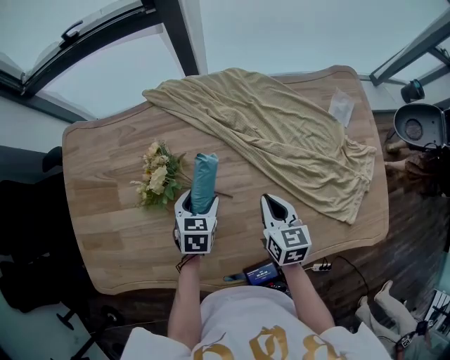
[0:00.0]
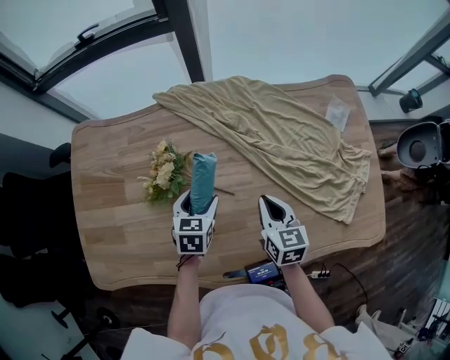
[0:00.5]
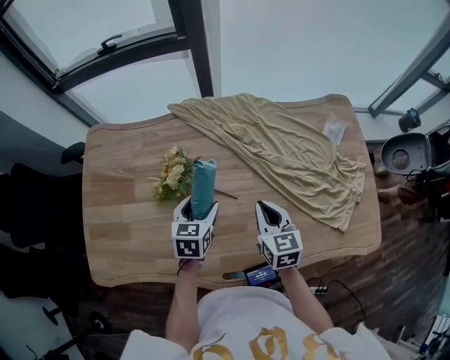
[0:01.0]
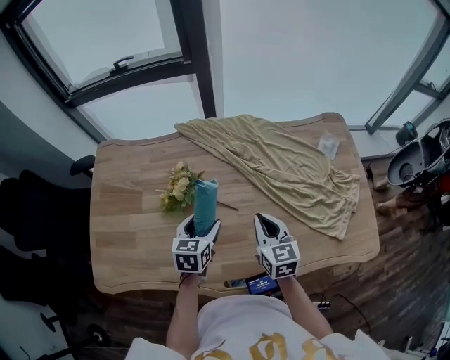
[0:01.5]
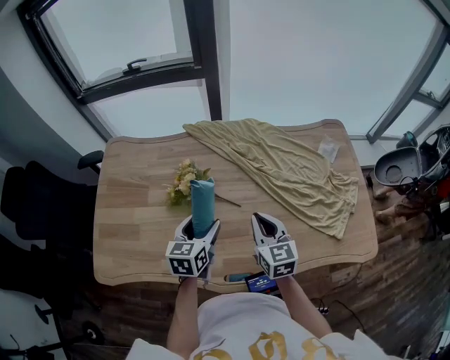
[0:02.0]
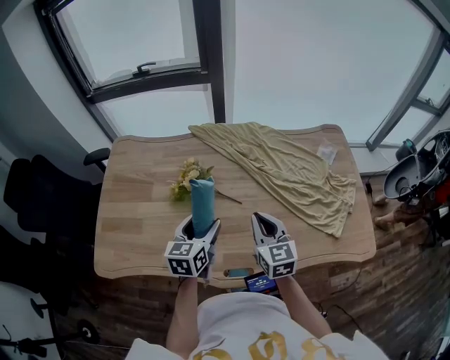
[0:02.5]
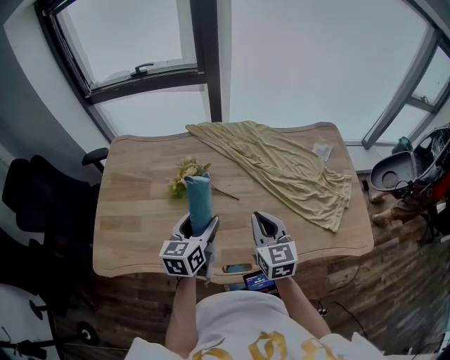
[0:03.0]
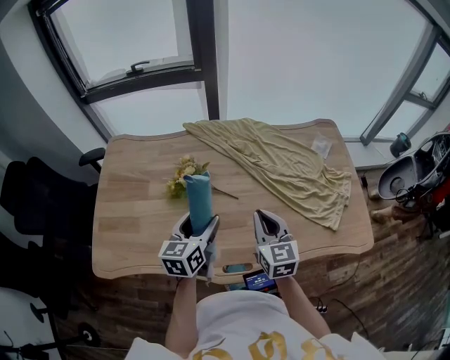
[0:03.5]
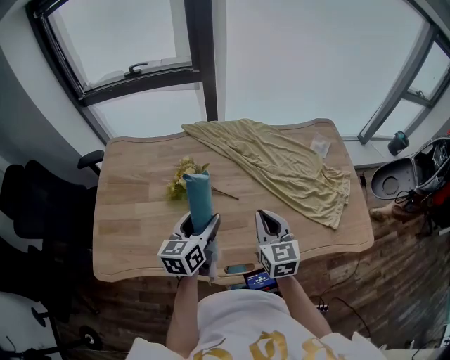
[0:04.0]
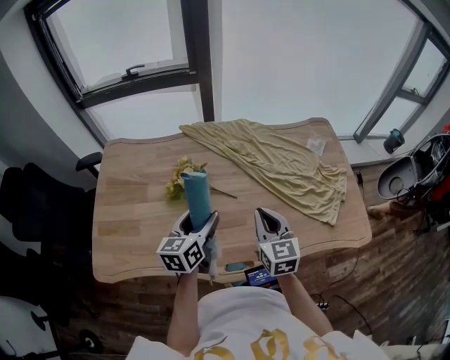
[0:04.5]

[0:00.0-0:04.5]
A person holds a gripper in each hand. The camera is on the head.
0:00.0 to 0:02.0: The right gripper moves upward, backward and to the left, roughly 15 cm, and changes its angle by some 20 degrees, while the left gripper heads upward and backward, covering roughly 20 cm, and turns by about 30 degrees.
0:02.0 to 0:04.5: The right gripper goes roughly 5 cm backward. Meanwhile the left gripper shifts some 5 cm upward.

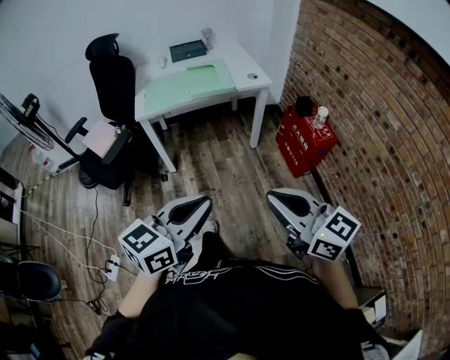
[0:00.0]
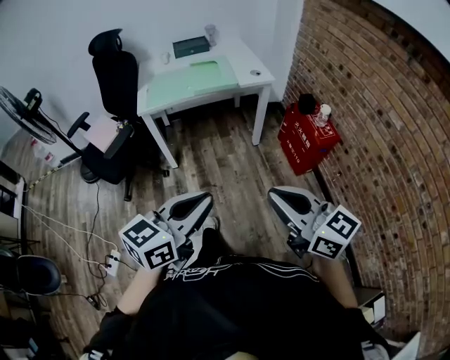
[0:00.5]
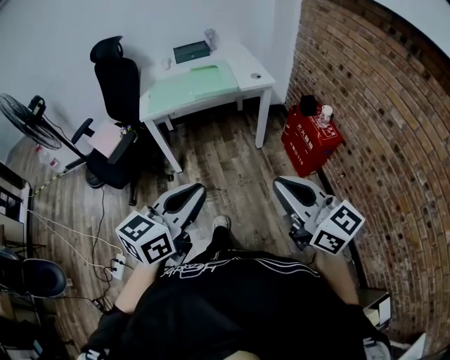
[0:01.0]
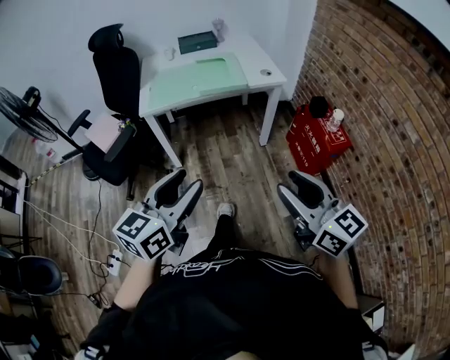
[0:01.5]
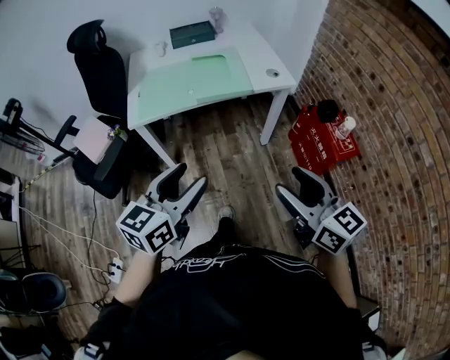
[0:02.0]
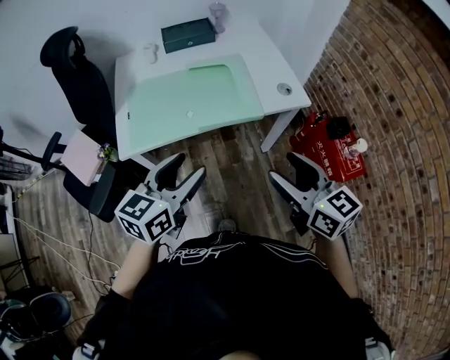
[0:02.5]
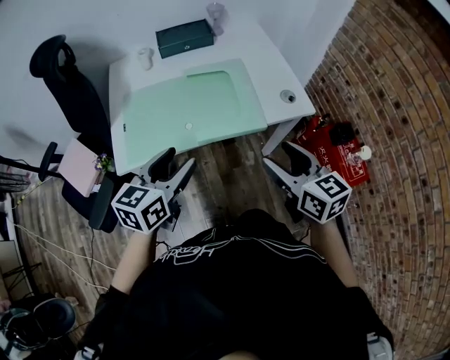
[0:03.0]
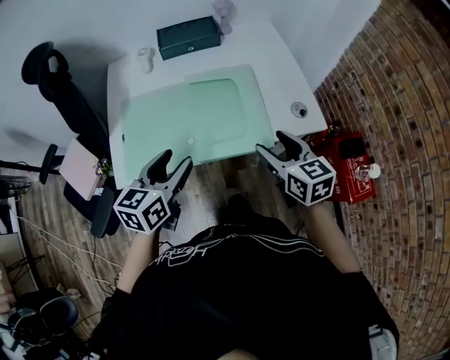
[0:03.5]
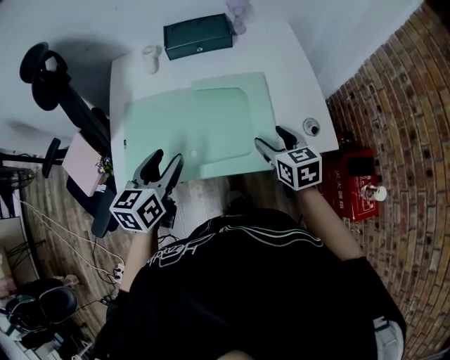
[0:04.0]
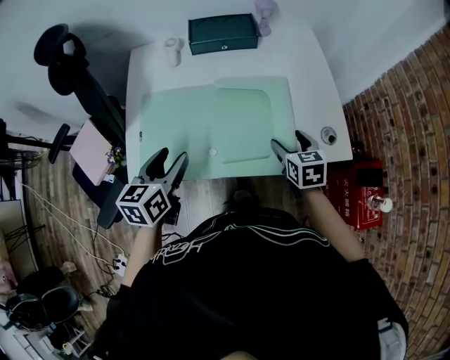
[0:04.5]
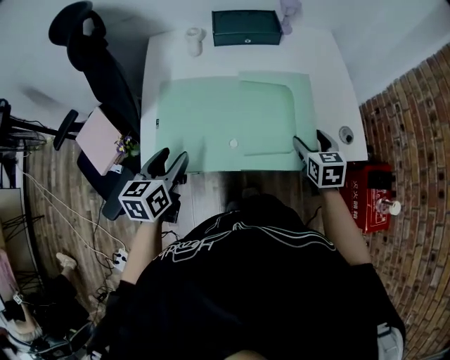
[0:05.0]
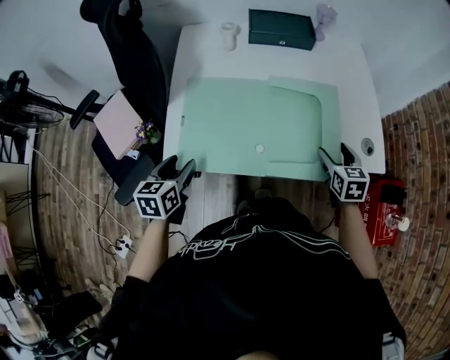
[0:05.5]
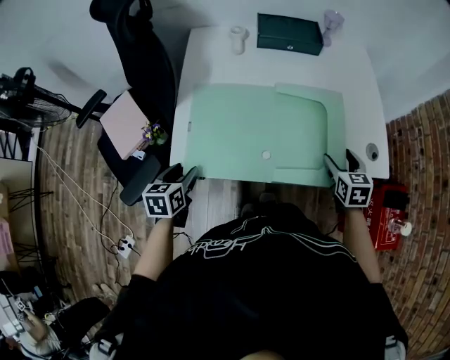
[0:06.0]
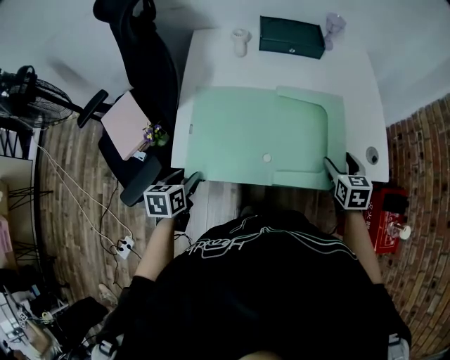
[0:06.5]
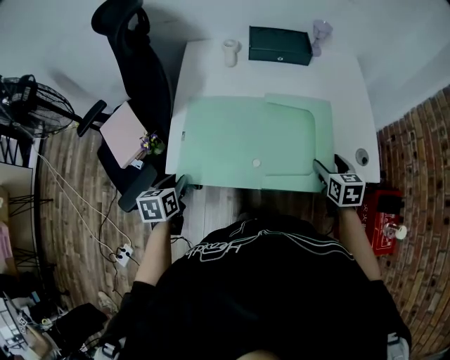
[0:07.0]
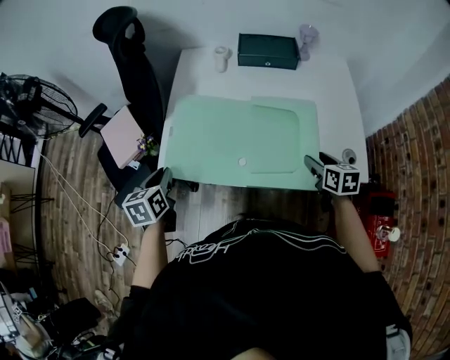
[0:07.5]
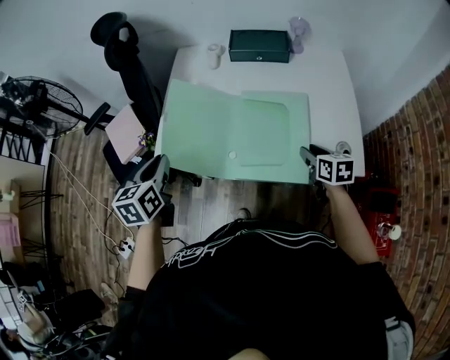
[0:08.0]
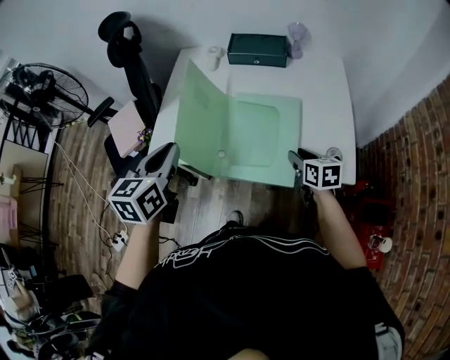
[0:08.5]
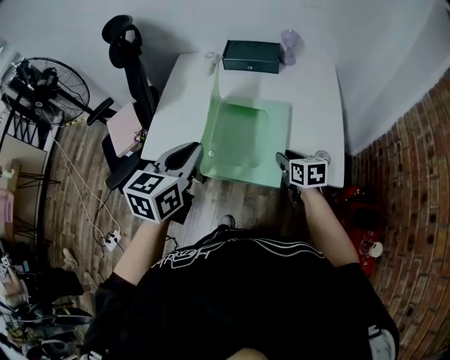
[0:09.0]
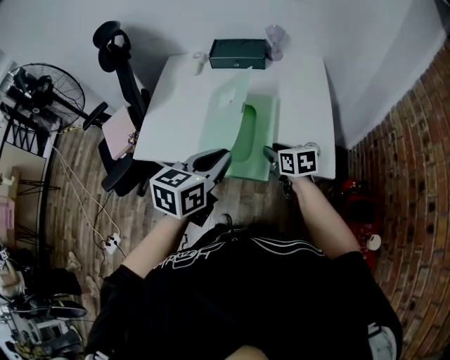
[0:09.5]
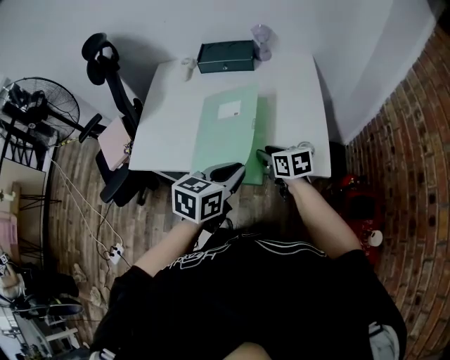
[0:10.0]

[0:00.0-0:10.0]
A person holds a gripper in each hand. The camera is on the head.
0:00.0 to 0:02.0: Both grippers move forward, roughly 25 cm. The left gripper opens. The right gripper opens its fingers.
0:02.0 to 0:04.0: Both grippers are carried forward, some 50 cm. The right gripper rotates roughly 30 degrees, while the left gripper turns by roughly 20 degrees.
0:04.0 to 0:06.0: The left gripper heads to the left, downward and backward, covering about 25 cm, and rotates some 20 degrees.
0:06.0 to 0:08.0: The right gripper turns by approximately 20 degrees, and closes, while the left gripper travels upward and to the right by approximately 20 cm, and closes its fingers.
0:08.0 to 0:10.0: The left gripper heads to the right, covering approximately 35 cm, and turns by approximately 30 degrees.

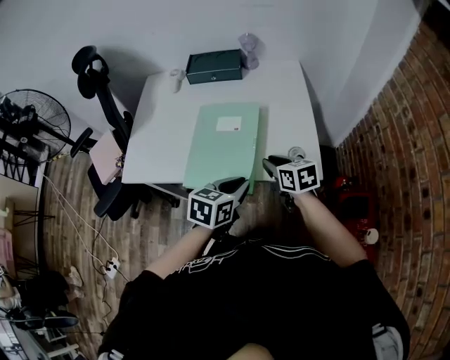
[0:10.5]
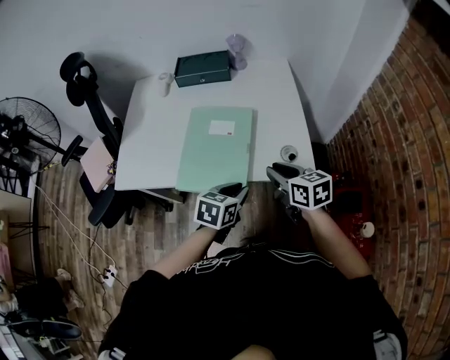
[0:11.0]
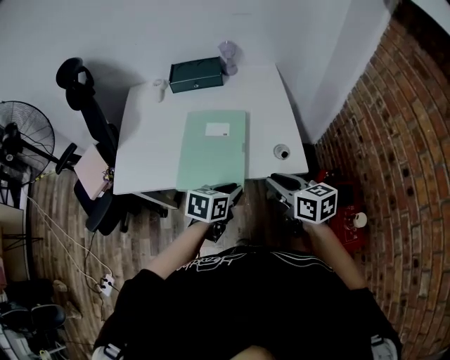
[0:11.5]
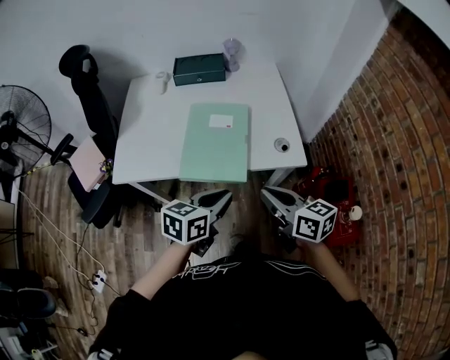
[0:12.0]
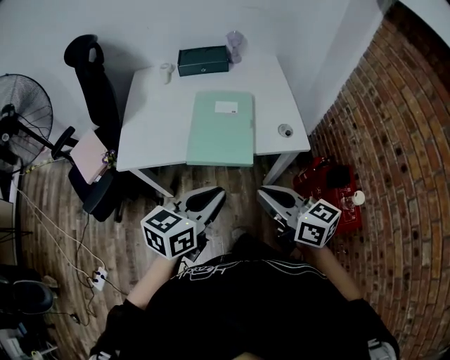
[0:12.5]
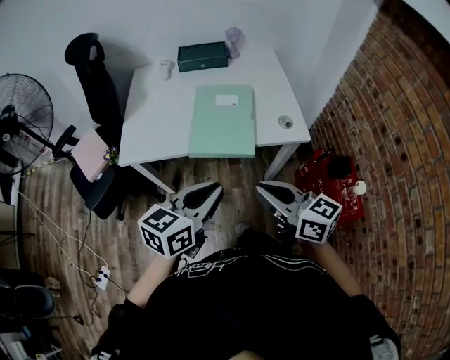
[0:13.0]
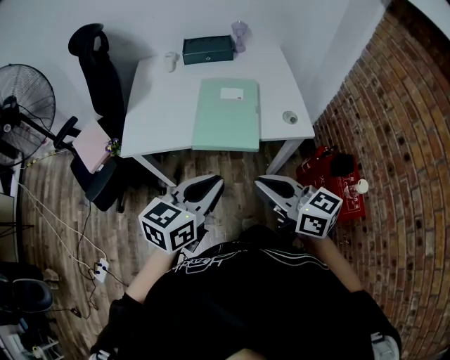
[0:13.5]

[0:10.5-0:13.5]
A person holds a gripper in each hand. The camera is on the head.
0:10.5 to 0:12.0: The left gripper heads backward and upward, covering about 10 cm; the right gripper heads backward and upward, covering some 20 cm.
0:12.0 to 0:13.5: The left gripper moves backward, to the left and upward, approximately 15 cm. Meanwhile the right gripper travels backward and to the left by some 10 cm.

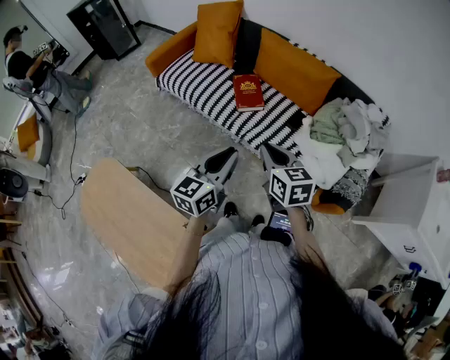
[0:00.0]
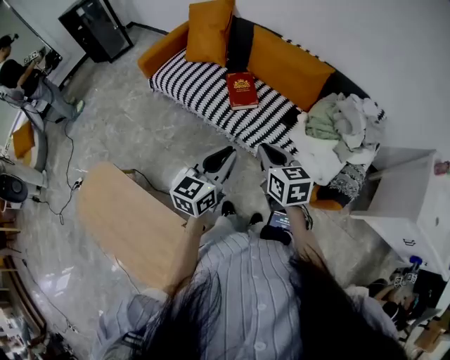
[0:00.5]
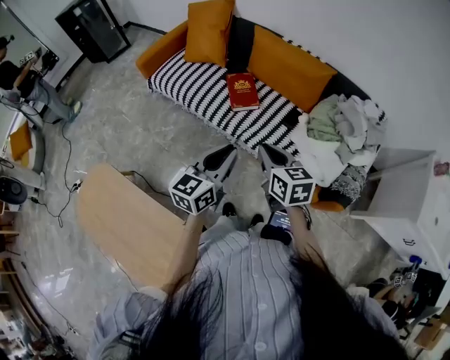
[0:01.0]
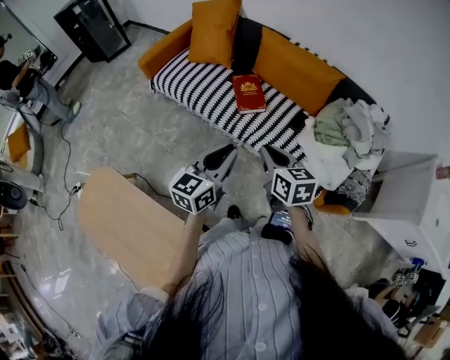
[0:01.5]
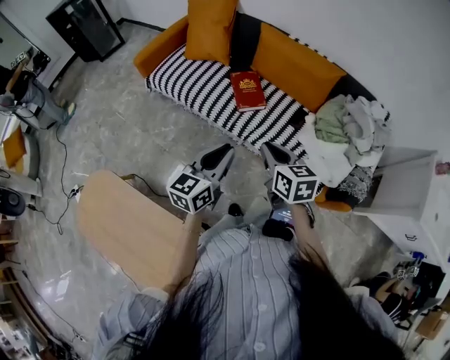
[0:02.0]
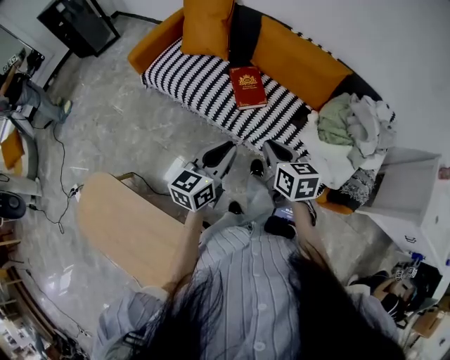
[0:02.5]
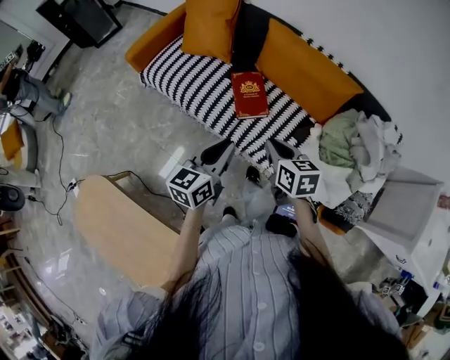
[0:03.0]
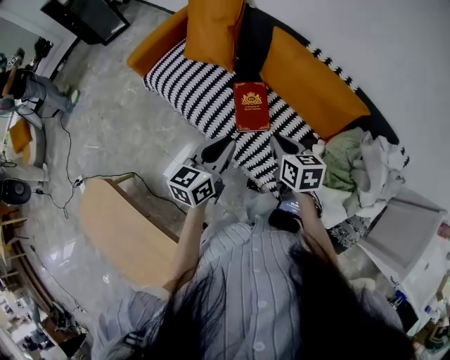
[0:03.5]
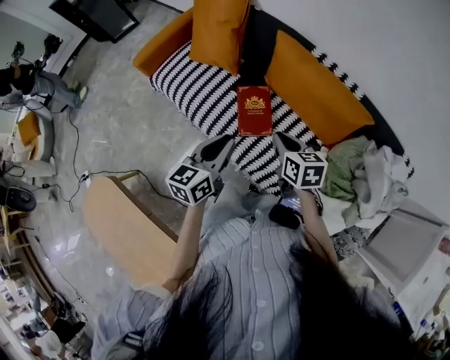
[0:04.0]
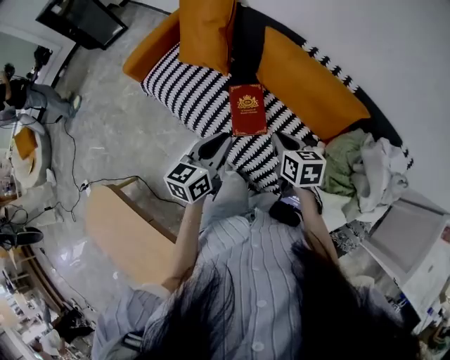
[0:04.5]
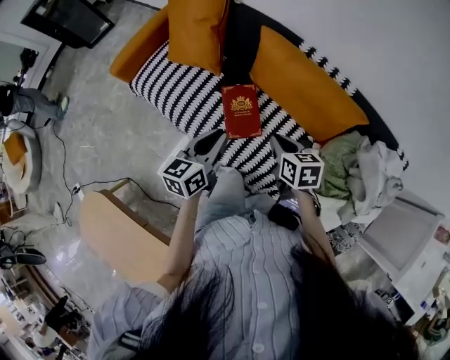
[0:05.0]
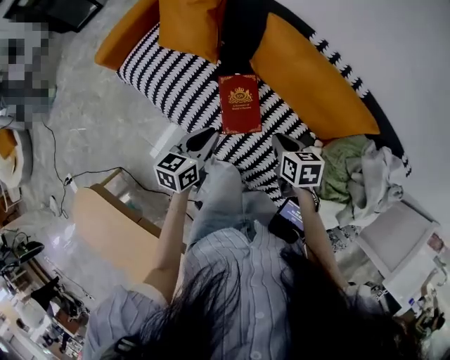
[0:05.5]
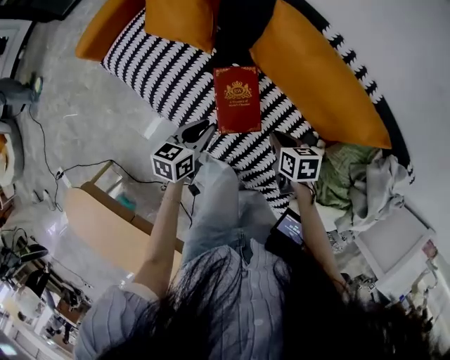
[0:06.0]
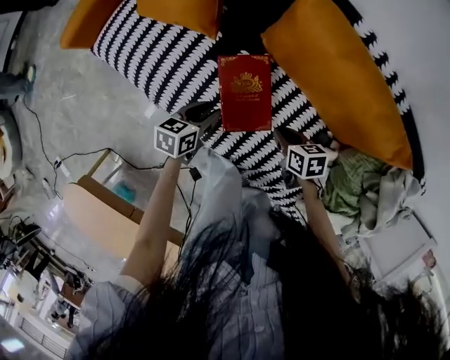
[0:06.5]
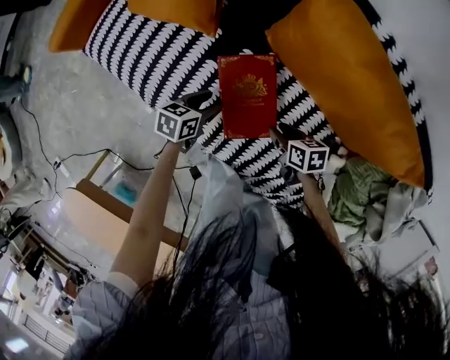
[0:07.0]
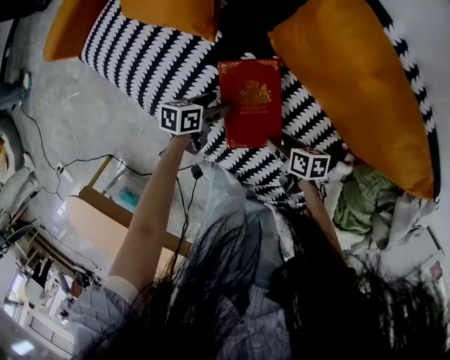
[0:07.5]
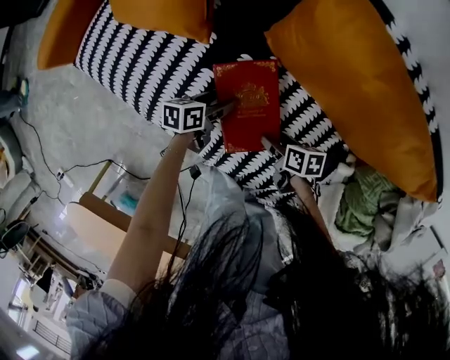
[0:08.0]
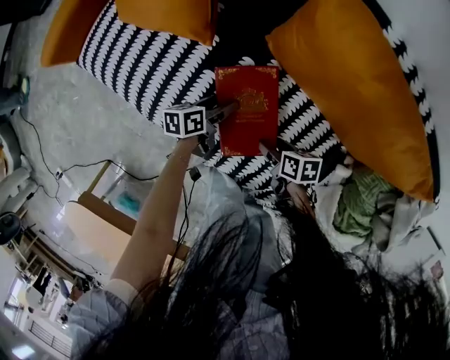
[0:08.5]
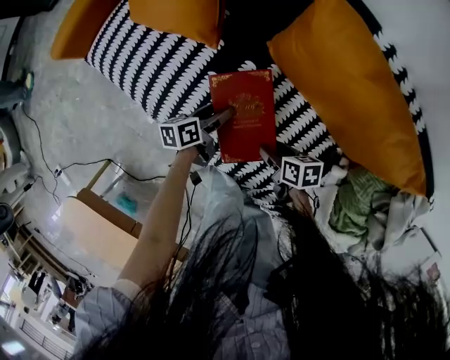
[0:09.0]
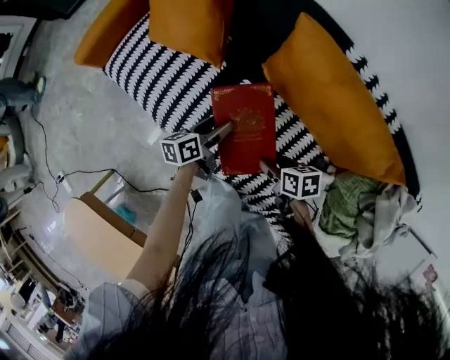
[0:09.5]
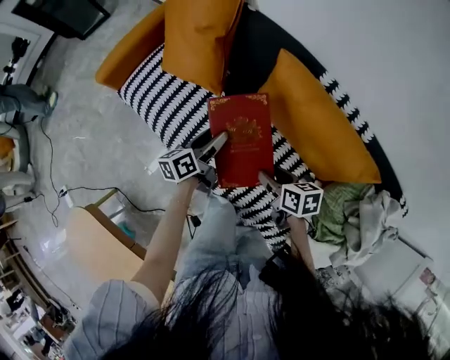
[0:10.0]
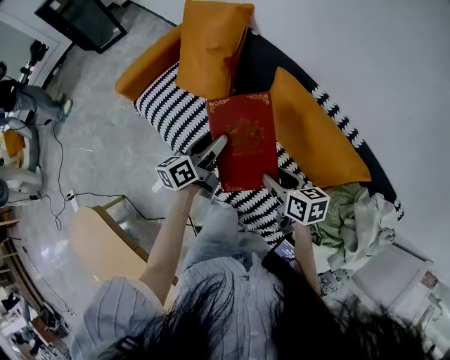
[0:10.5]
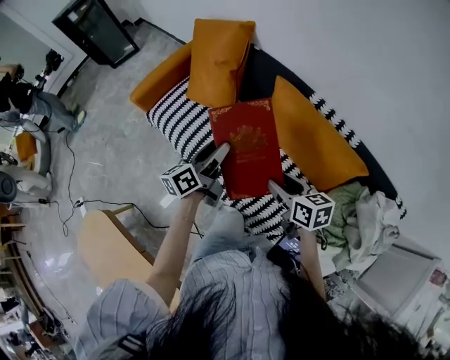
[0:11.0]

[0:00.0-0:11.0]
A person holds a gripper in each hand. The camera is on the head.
0:00.0 to 0:02.0: The two grippers go approximately 10 cm to the left and forward.
0:02.0 to 0:03.5: Both grippers travel together forward, some 30 cm.
0:03.5 to 0:05.5: The left gripper shifts roughly 20 cm forward and downward. Meanwhile the right gripper is displaced downward and forward by roughly 15 cm.
0:05.5 to 0:07.5: Both grippers move downward, approximately 35 cm. The right gripper rotates about 30 degrees, and opens, while the left gripper turns by about 30 degrees, and opens.
0:07.5 to 0:09.0: The right gripper goes about 5 cm upward.
0:09.0 to 0:11.0: Both grippers travel together upward, about 40 cm. The left gripper changes its angle by roughly 40 degrees. Meanwhile the right gripper swivels about 30 degrees.
